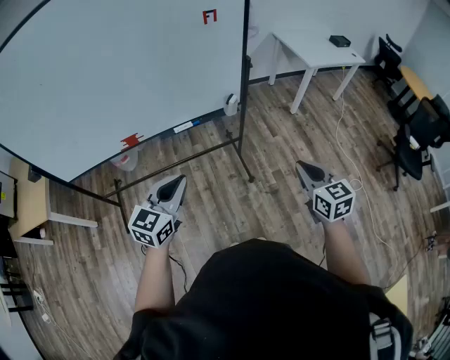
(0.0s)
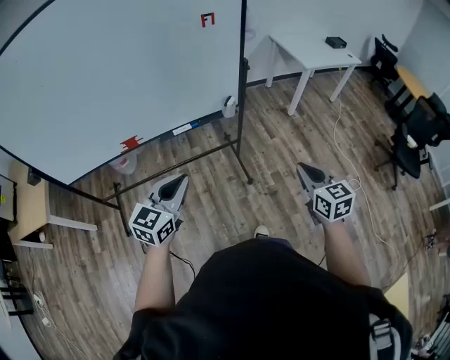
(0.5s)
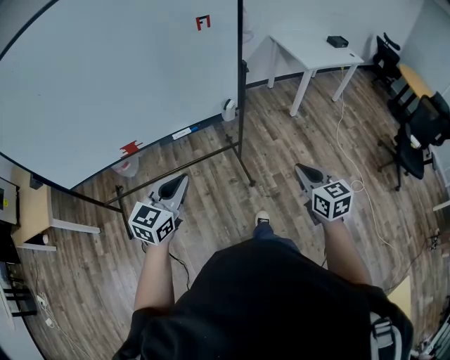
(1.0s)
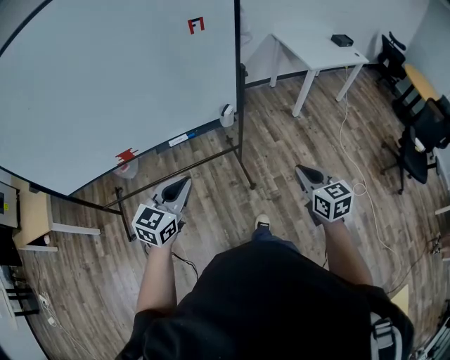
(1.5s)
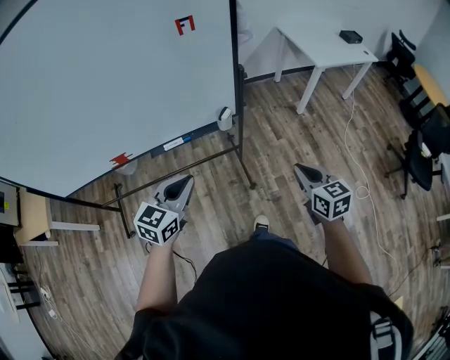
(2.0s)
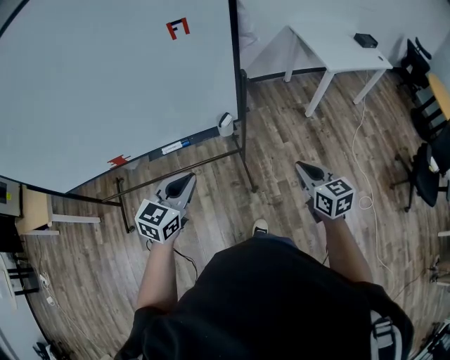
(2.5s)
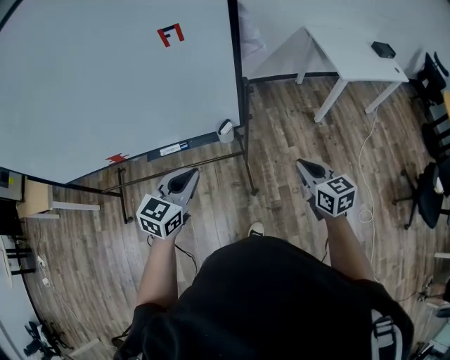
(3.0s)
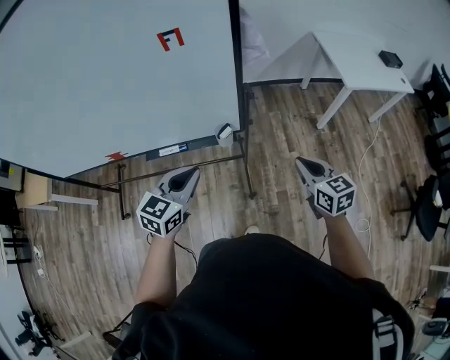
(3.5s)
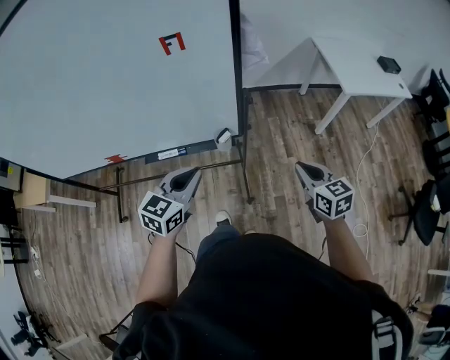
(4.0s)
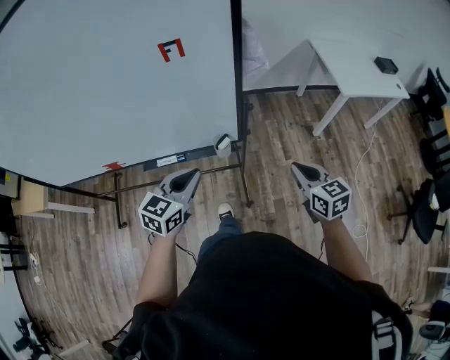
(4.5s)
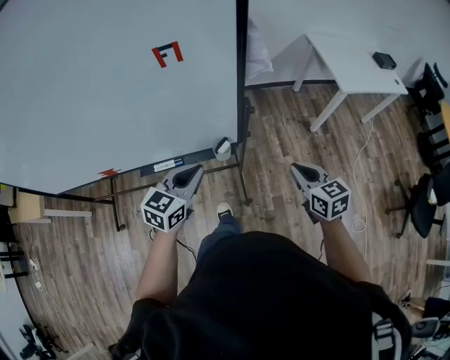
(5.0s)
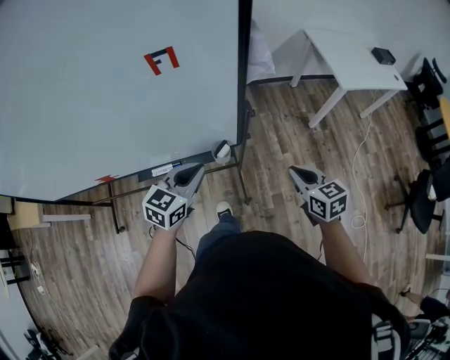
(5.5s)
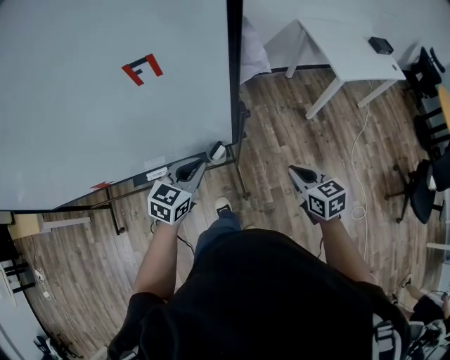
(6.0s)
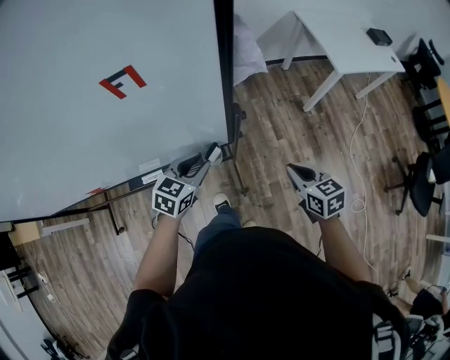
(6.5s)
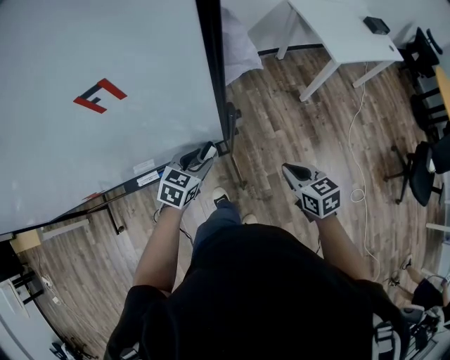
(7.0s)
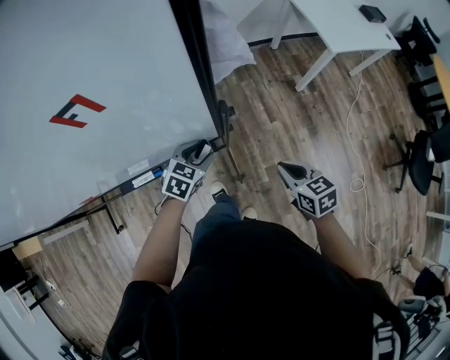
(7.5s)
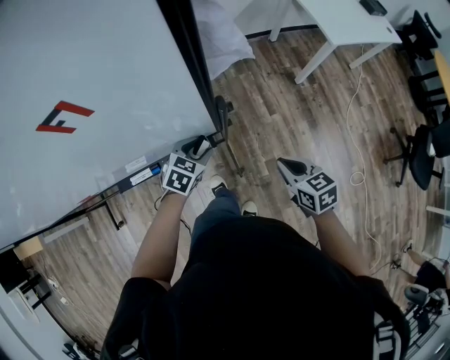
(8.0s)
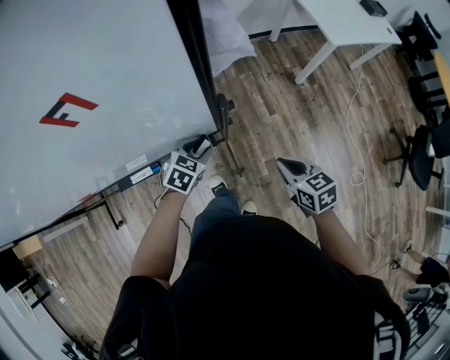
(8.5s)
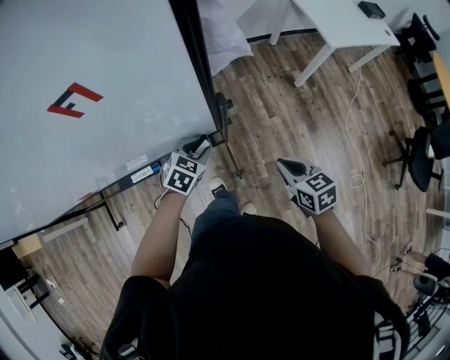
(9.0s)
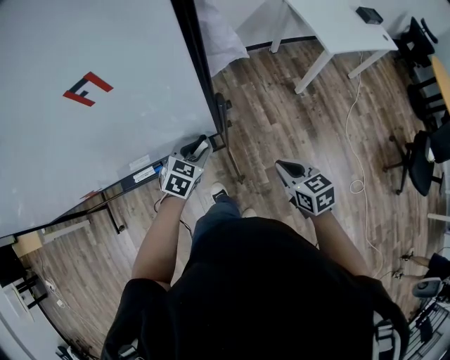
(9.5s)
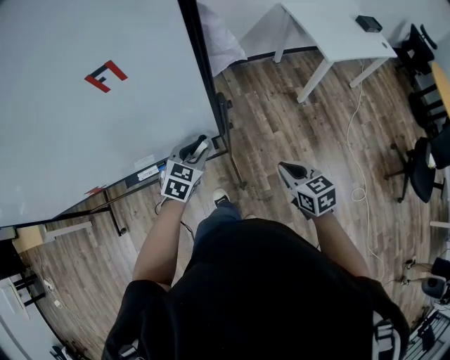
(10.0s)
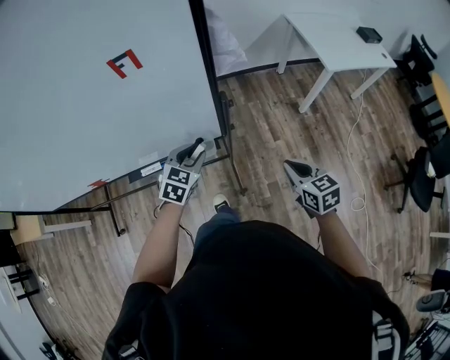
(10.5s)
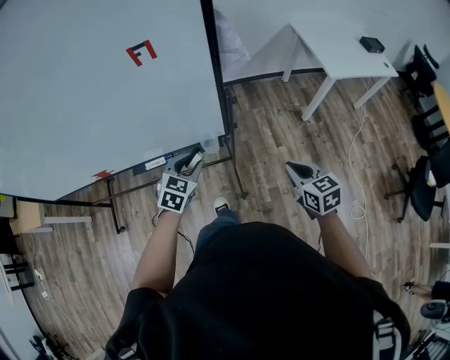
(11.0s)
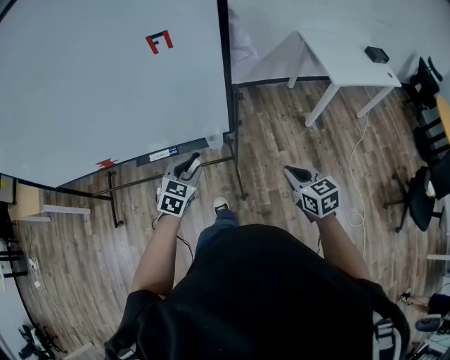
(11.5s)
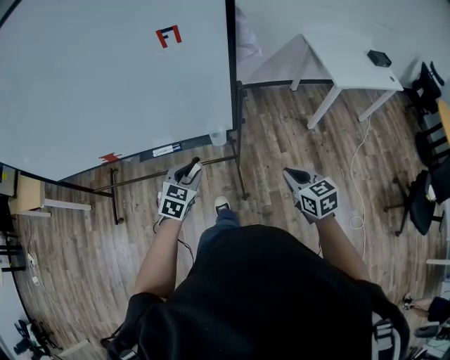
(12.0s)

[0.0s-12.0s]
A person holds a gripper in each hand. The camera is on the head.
0.0s to 2.0s: The left gripper goes some 15 cm forward and to the right, while the right gripper travels forward by about 15 cm.
2.0s to 4.0s: The left gripper travels forward and to the right by roughly 15 cm; the right gripper shifts roughly 20 cm forward.
4.0s to 6.0s: The left gripper shifts roughly 15 cm forward and downward; the right gripper is displaced forward and downward by approximately 10 cm.
6.0s to 8.0s: The right gripper travels downward by roughly 5 cm, while the left gripper is displaced downward and forward by approximately 15 cm, swivels about 20 degrees, and opens.
8.0s to 10.0s: The left gripper travels upward by some 10 cm; the right gripper shifts by roughly 5 cm.
10.0s to 12.0s: The right gripper goes approximately 10 cm backward. The left gripper is displaced backward and to the left by roughly 20 cm.

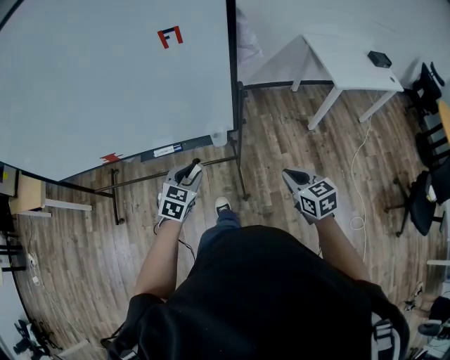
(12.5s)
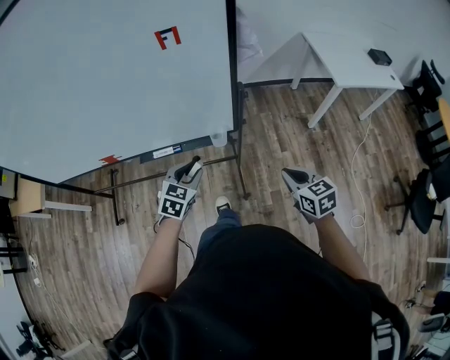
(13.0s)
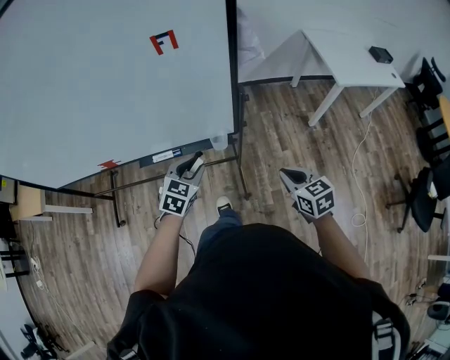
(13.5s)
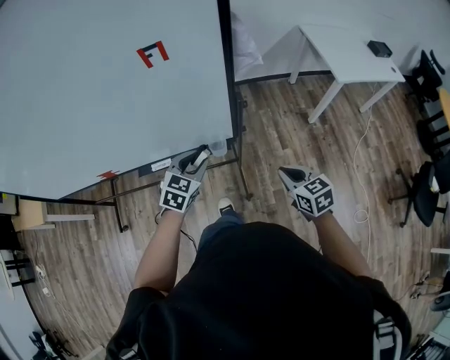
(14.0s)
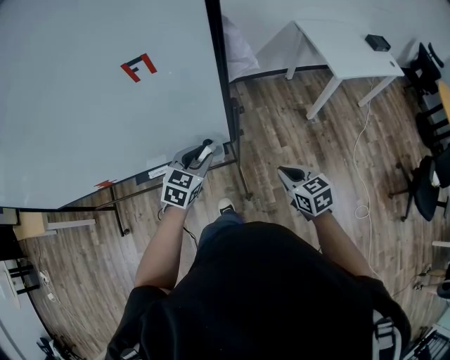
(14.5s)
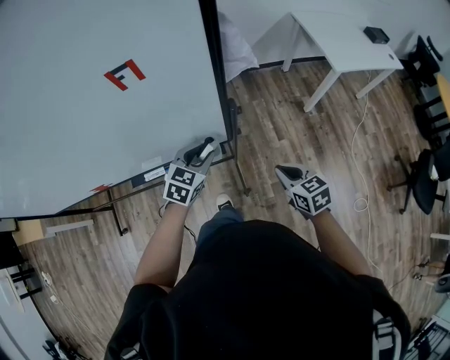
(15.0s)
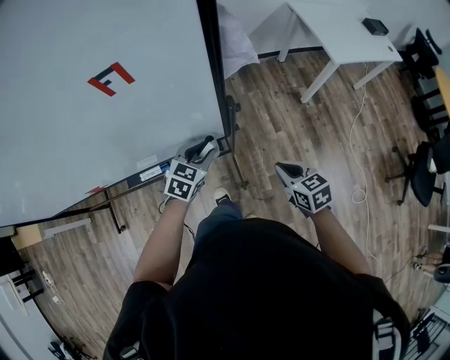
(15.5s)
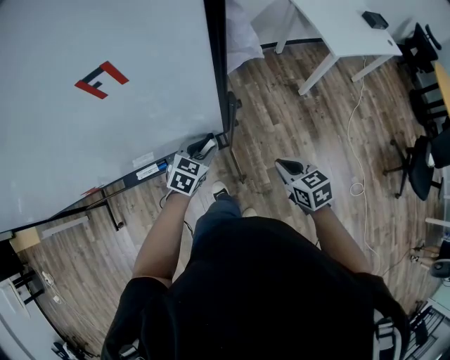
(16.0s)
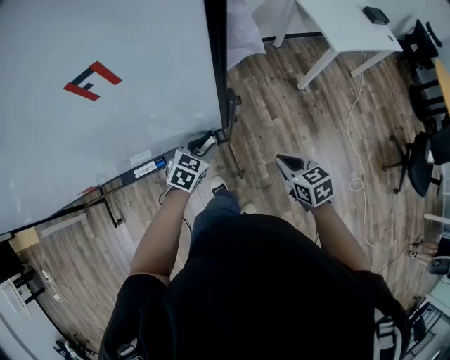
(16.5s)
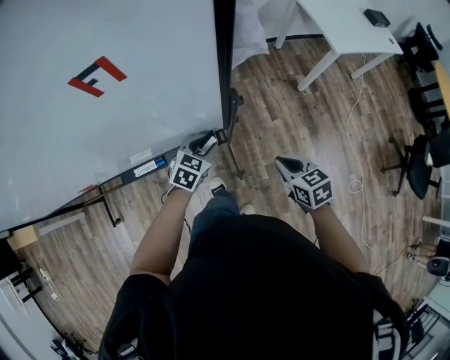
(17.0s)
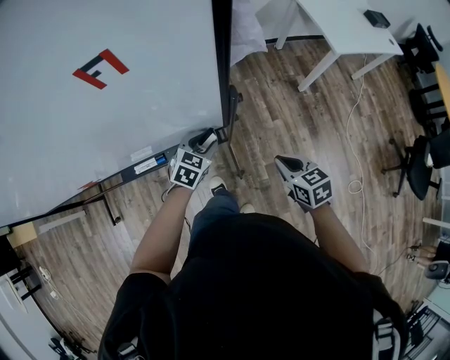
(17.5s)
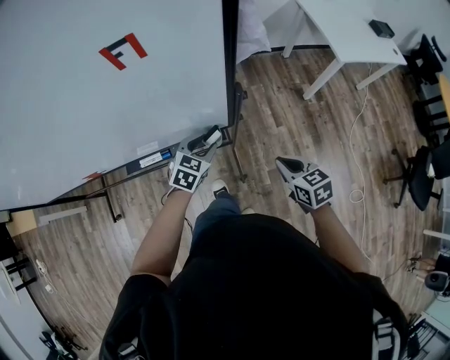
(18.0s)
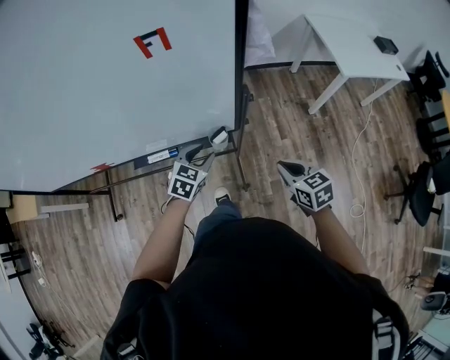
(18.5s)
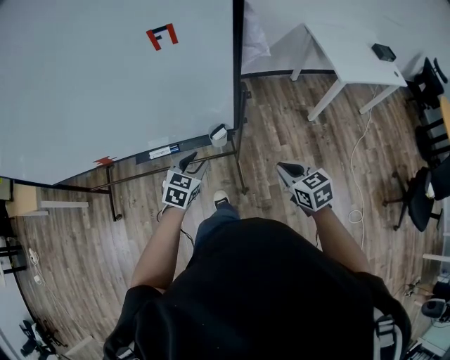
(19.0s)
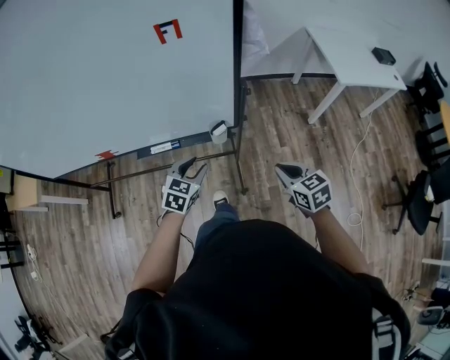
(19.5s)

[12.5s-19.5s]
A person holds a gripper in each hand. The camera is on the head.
12.5s to 14.5s: The right gripper travels forward by about 10 cm; the left gripper travels forward and to the right by roughly 15 cm.
14.5s to 16.0s: The left gripper goes some 10 cm downward. Meanwhile the right gripper changes place by about 5 cm.
16.0s to 17.5s: The grippers move only a little.
17.5s to 19.5s: The left gripper travels backward, to the left and upward by approximately 20 cm. The right gripper shifts about 10 cm backward and upward.

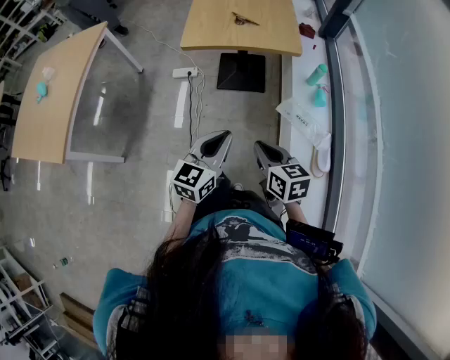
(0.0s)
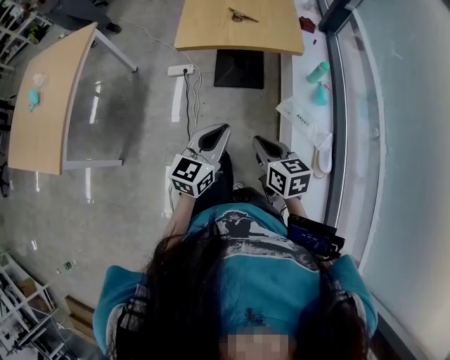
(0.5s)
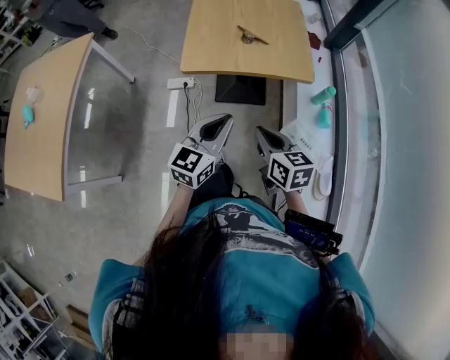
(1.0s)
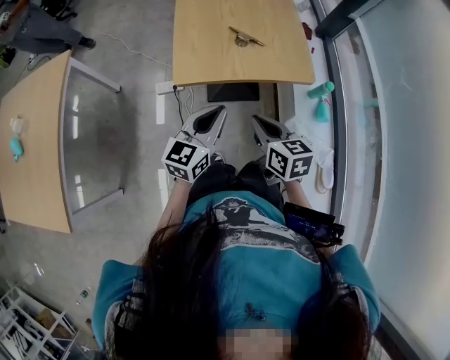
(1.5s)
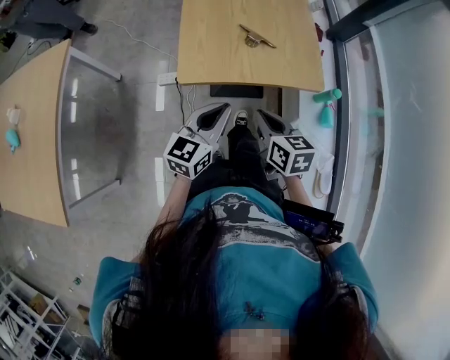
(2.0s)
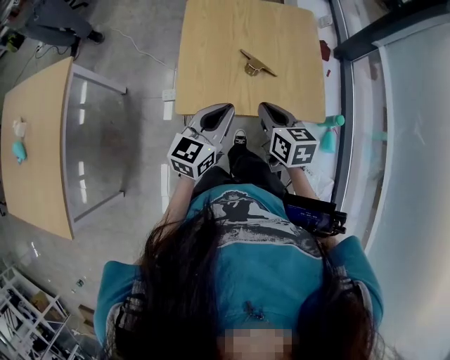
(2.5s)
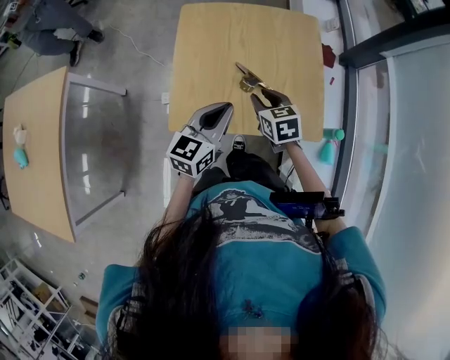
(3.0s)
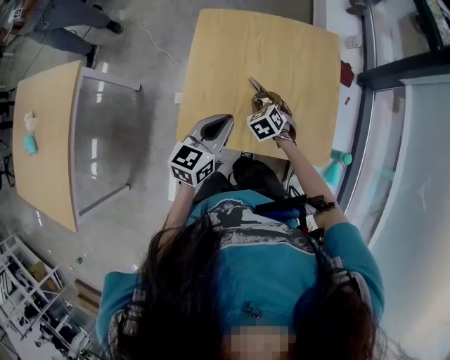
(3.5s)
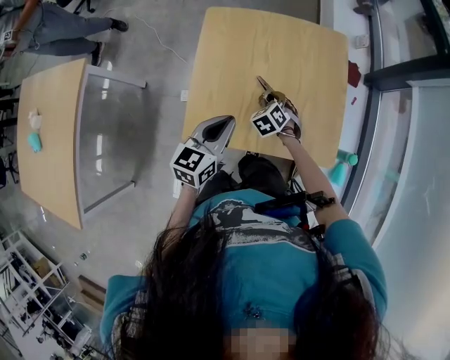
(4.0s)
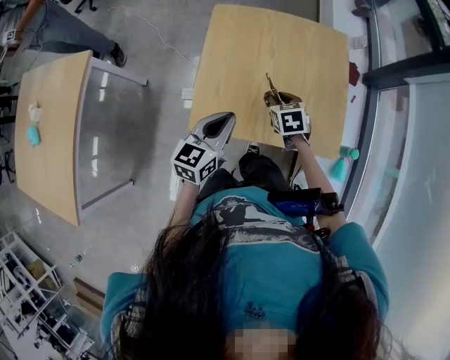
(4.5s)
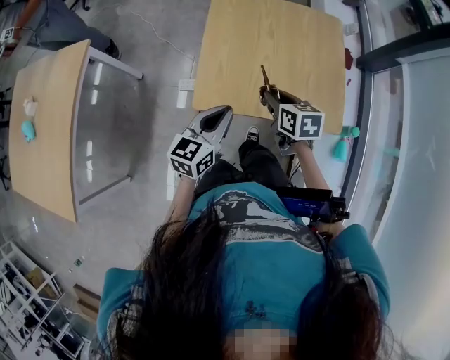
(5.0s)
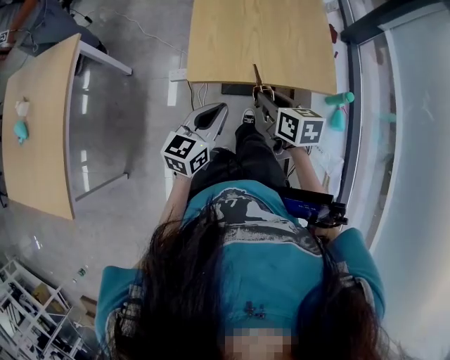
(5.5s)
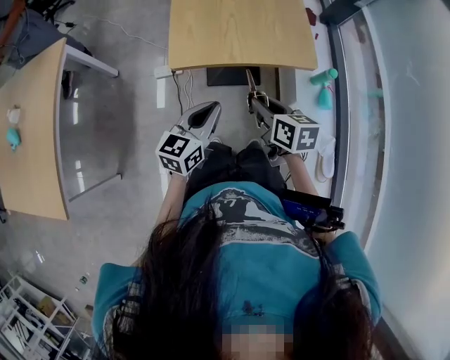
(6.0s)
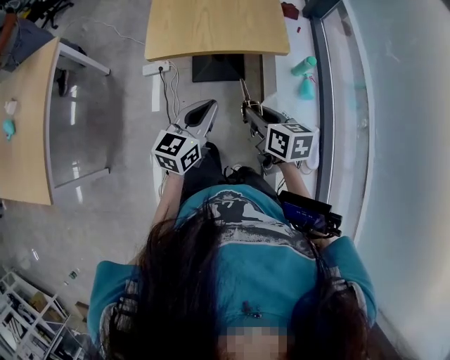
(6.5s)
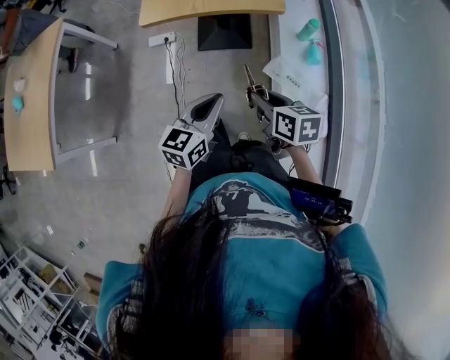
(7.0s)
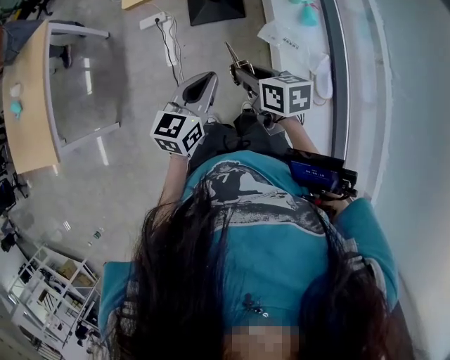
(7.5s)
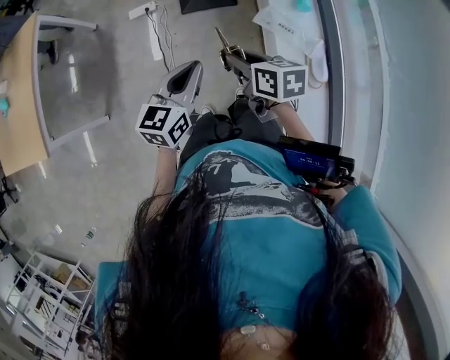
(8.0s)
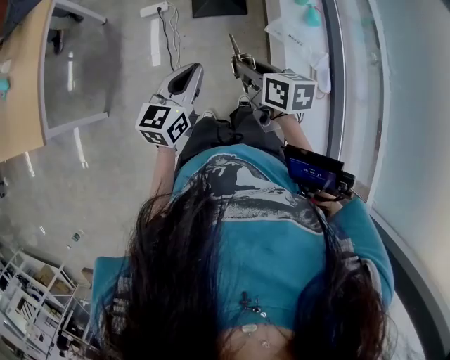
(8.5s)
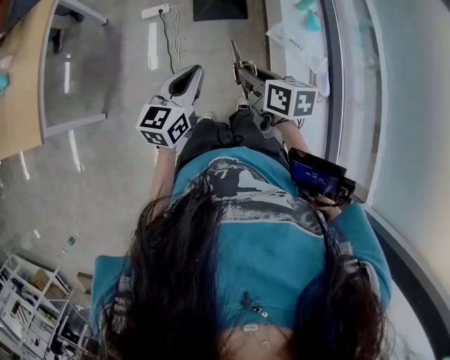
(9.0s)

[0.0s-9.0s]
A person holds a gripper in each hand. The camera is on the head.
0.0s to 2.0s: The pair of grippers is taken forward, some 40 cm.
2.0s to 4.5s: The left gripper shifts approximately 20 cm forward. Meanwhile the right gripper moves forward, roughly 30 cm, swivels some 30 degrees, and opens its fingers.
4.5s to 7.0s: The pair of grippers is taken backward, approximately 60 cm. The right gripper rotates some 30 degrees.
7.0s to 9.0s: The two grippers go some 20 cm to the left and backward.
